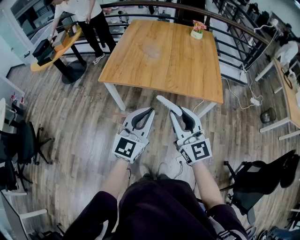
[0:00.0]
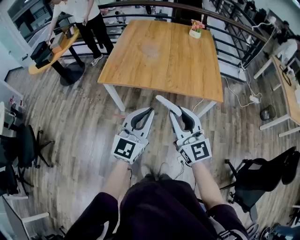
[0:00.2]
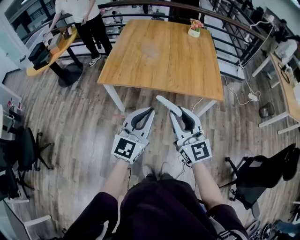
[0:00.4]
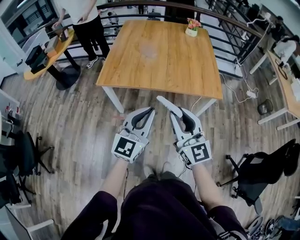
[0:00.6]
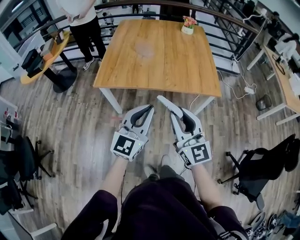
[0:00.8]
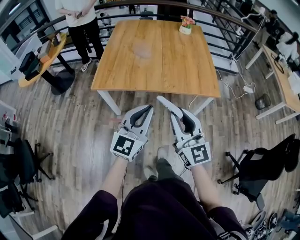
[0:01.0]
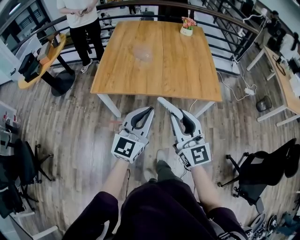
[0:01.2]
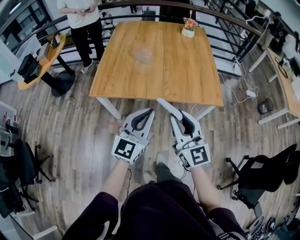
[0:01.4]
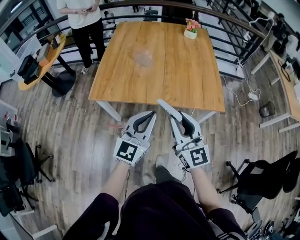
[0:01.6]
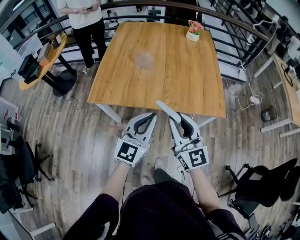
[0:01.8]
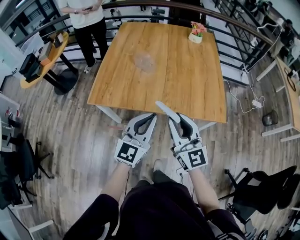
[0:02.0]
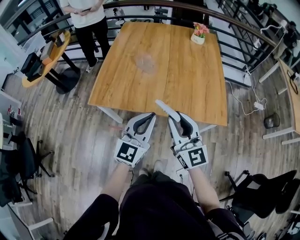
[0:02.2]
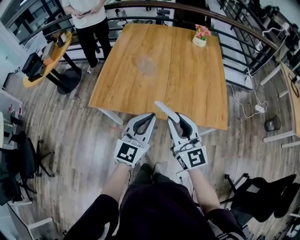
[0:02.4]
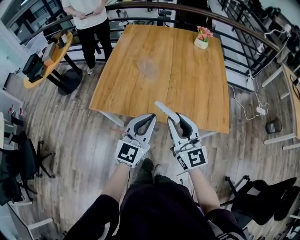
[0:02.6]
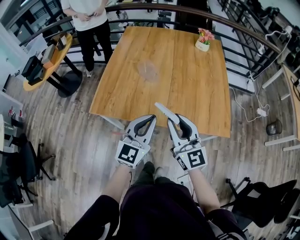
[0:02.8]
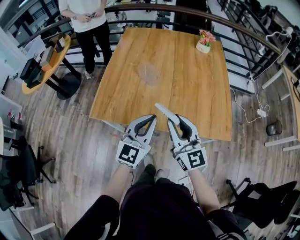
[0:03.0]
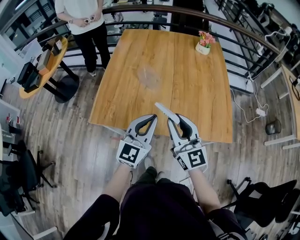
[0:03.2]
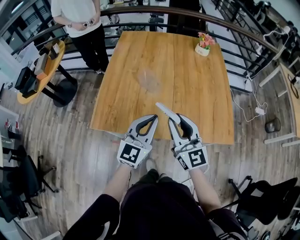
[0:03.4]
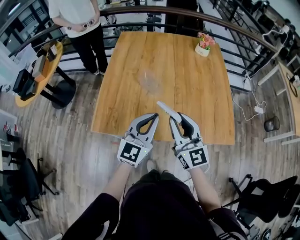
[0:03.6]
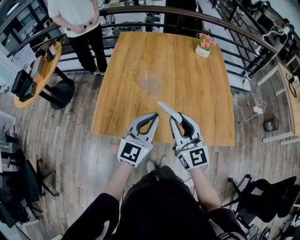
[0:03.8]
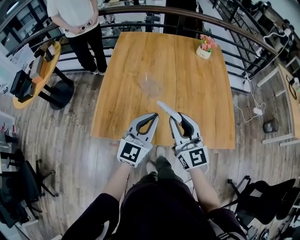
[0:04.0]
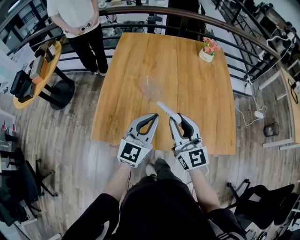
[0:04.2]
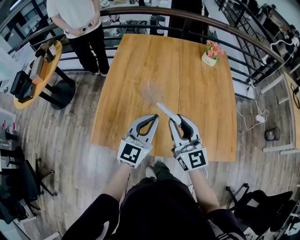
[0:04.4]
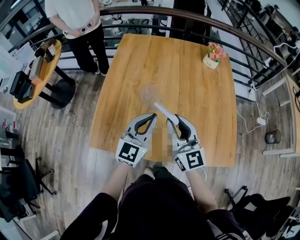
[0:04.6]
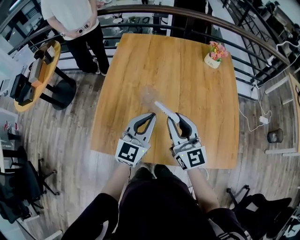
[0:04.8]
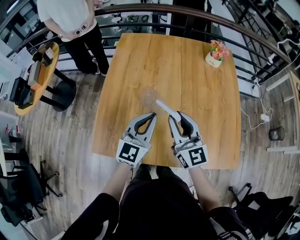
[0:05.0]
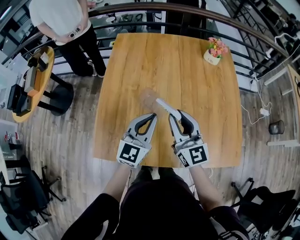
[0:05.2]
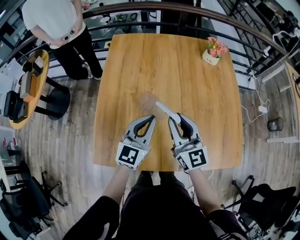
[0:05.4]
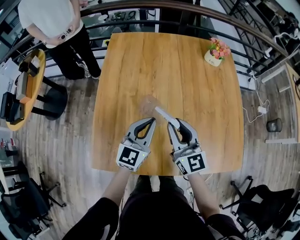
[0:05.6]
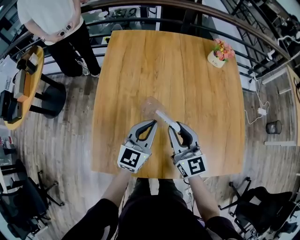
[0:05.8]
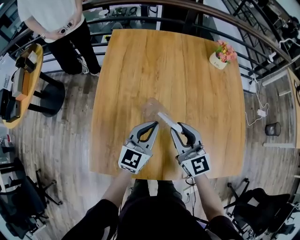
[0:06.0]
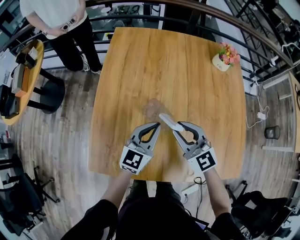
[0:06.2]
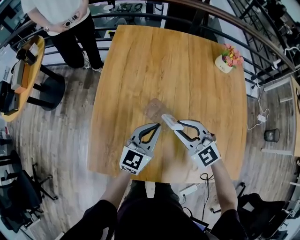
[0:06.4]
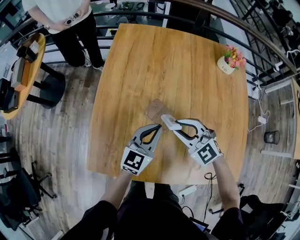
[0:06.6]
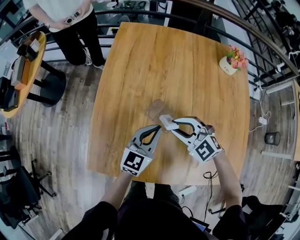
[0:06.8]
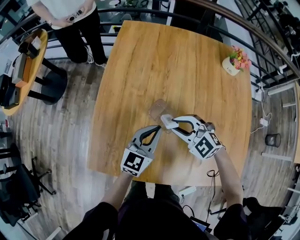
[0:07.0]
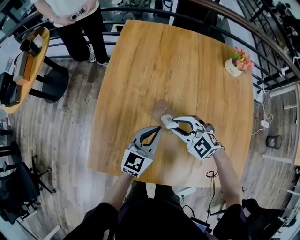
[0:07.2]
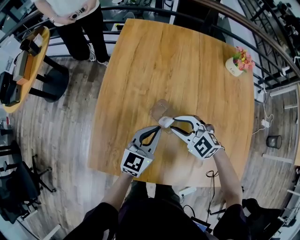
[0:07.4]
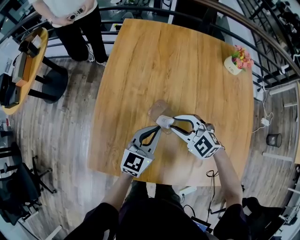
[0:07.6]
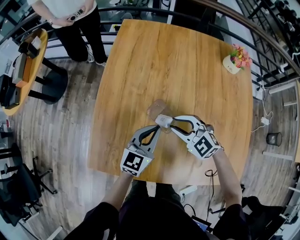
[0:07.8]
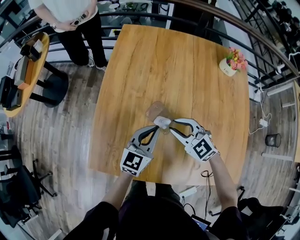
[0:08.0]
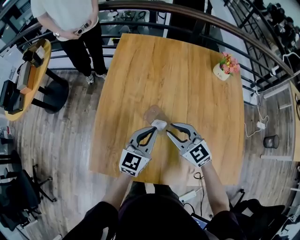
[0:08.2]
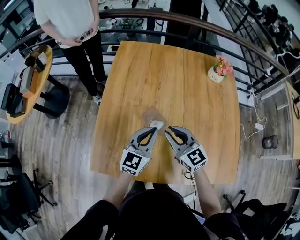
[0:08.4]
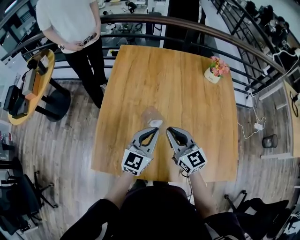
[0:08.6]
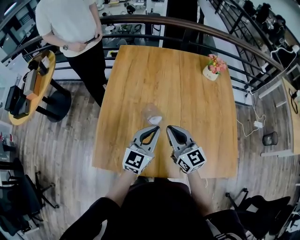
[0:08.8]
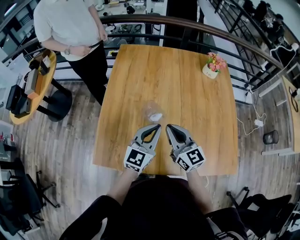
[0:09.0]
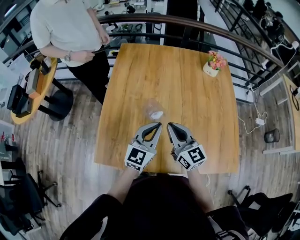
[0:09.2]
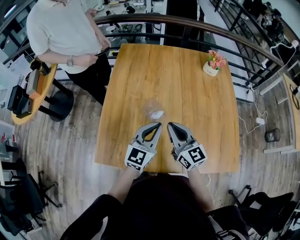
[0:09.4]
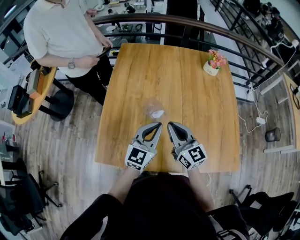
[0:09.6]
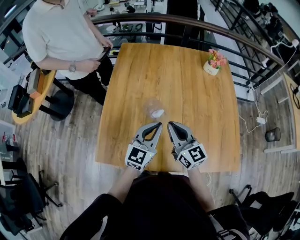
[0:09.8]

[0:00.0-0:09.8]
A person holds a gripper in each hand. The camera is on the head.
0:00.0 to 0:01.4: The two grippers go some 10 cm forward.
0:01.4 to 0:02.8: The grippers both shift forward by about 20 cm.
0:02.8 to 0:04.2: The two grippers go about 20 cm forward and to the left.
0:04.2 to 0:05.6: Both grippers travel together forward, about 20 cm.
0:05.6 to 0:07.0: The left gripper travels downward by some 10 cm. The right gripper moves downward and forward, approximately 15 cm, and points its fingers roughly 30 degrees further downward.
0:07.0 to 0:08.4: The grippers both shift upward by roughly 10 cm. The right gripper rotates approximately 40 degrees.
0:08.4 to 0:09.8: Both grippers move backward, roughly 5 cm.

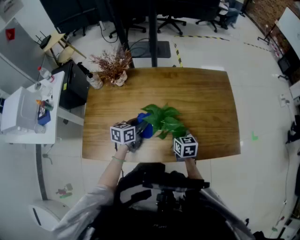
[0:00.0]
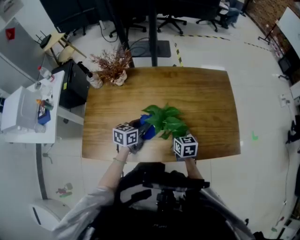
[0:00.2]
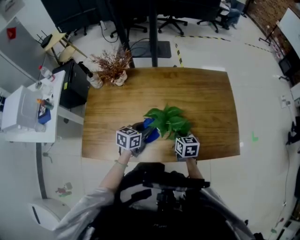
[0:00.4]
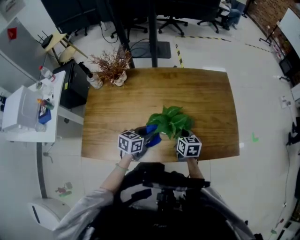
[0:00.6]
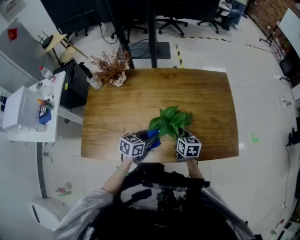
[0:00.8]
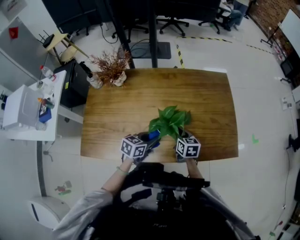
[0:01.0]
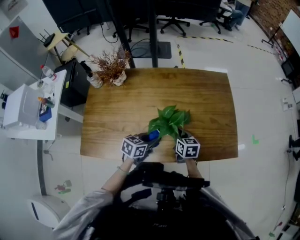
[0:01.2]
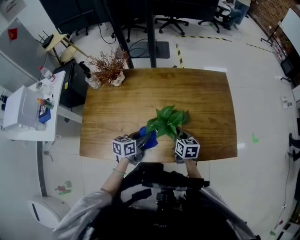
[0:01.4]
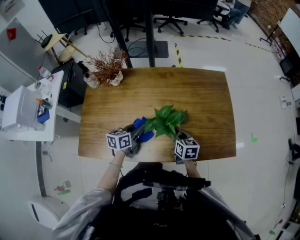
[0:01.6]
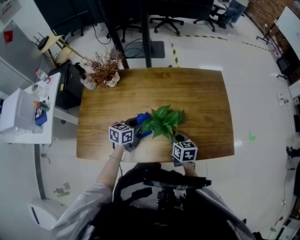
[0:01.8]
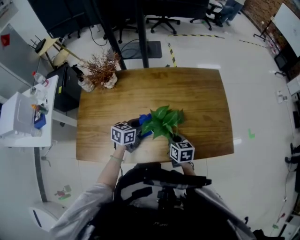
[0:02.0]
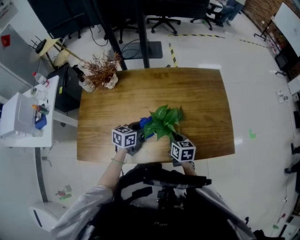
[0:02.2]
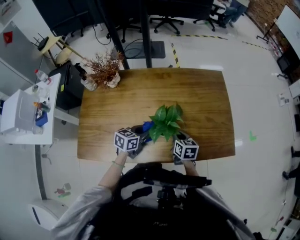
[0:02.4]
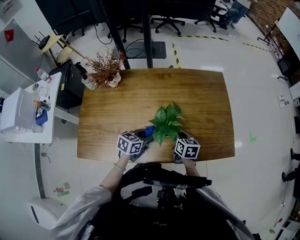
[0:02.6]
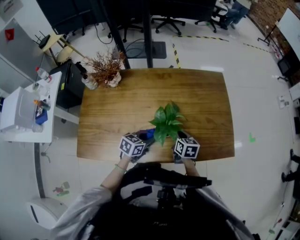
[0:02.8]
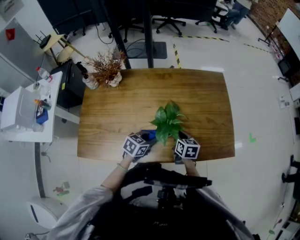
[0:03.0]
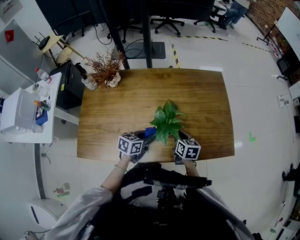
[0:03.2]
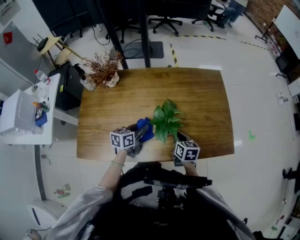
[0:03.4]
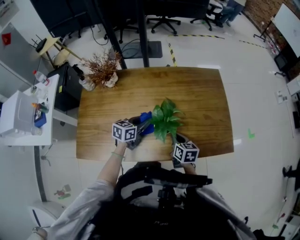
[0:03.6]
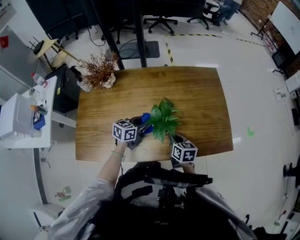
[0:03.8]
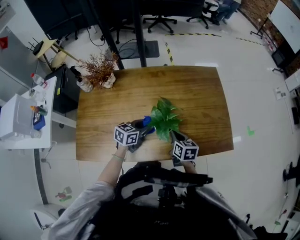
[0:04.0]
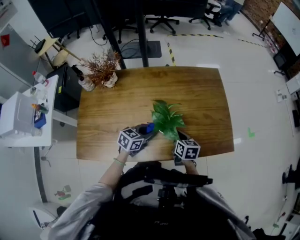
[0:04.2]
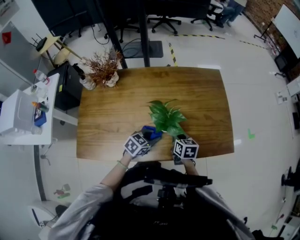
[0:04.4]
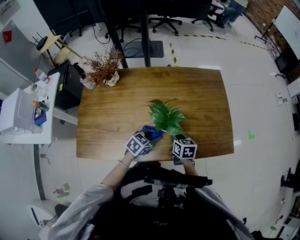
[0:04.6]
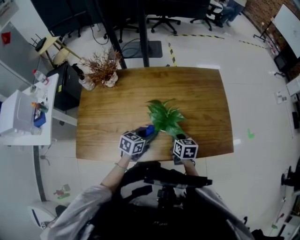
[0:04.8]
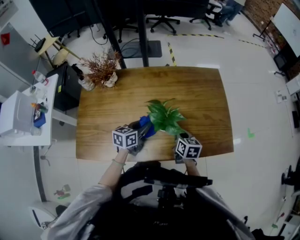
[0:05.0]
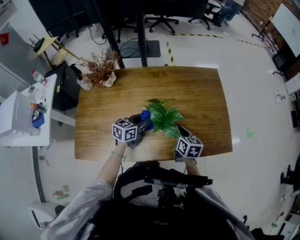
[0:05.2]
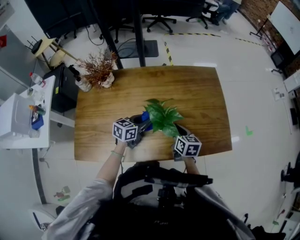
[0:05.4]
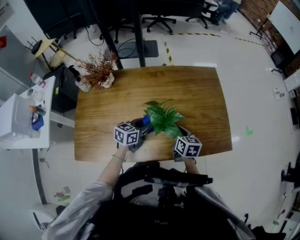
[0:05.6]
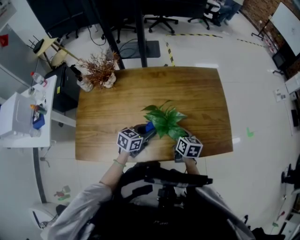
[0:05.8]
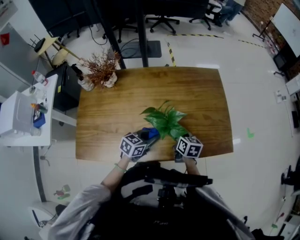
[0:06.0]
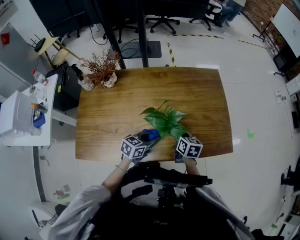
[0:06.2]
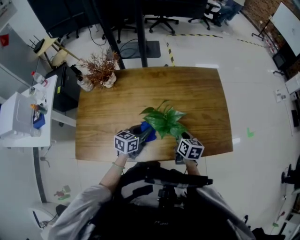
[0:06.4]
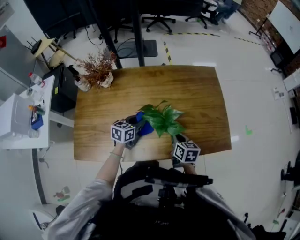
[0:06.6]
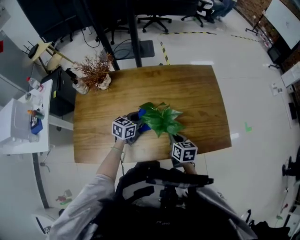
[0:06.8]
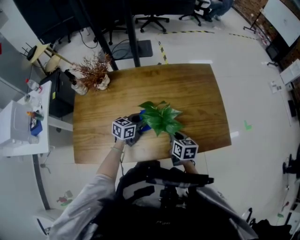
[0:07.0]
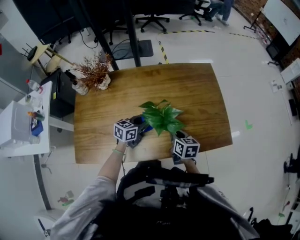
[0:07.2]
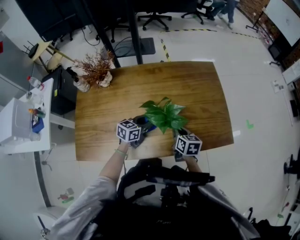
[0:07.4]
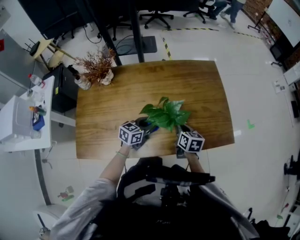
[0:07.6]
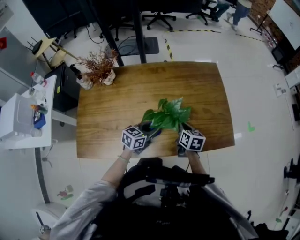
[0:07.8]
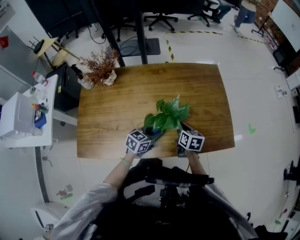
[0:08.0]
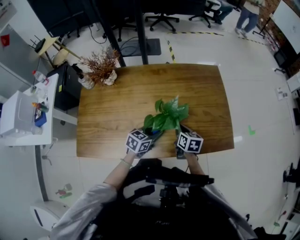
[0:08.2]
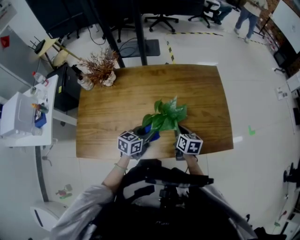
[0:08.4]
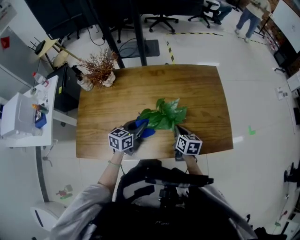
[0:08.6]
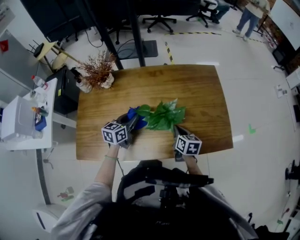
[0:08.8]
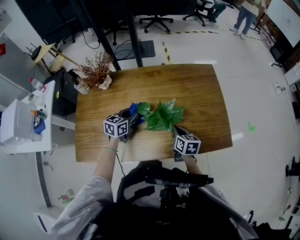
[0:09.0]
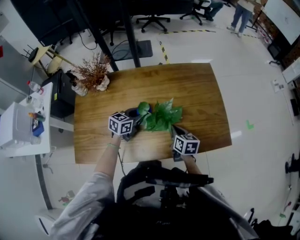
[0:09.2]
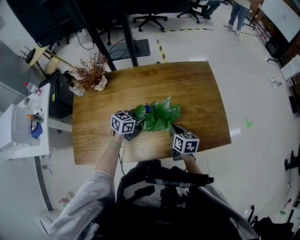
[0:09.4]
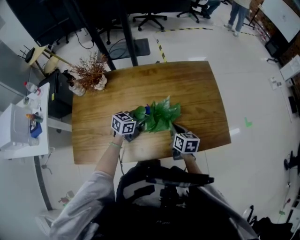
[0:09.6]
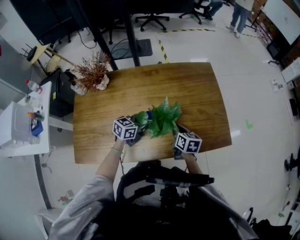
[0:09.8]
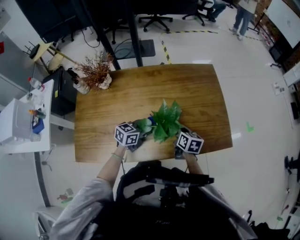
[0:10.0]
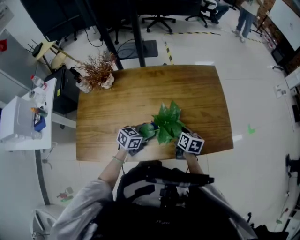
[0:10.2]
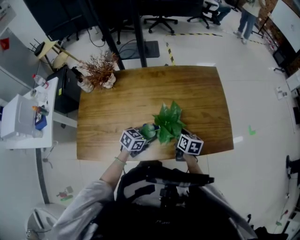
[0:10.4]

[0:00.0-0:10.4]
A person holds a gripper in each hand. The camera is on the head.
0:00.0 to 0:01.4: The left gripper moves to the right and backward, some 10 cm.
0:01.4 to 0:03.0: The left gripper moves to the right, about 5 cm, and changes its angle by approximately 30 degrees.
0:03.0 to 0:04.4: The left gripper goes to the left and returns, approximately 5 cm each way.
0:04.4 to 0:06.0: The left gripper reaches roughly 10 cm forward, then returns.
0:06.0 to 0:07.4: The left gripper is displaced forward by about 5 cm.
0:07.4 to 0:09.0: The left gripper moves to the left, approximately 10 cm.
0:09.0 to 0:10.4: The left gripper moves to the right and backward, roughly 15 cm, and turns by about 20 degrees.

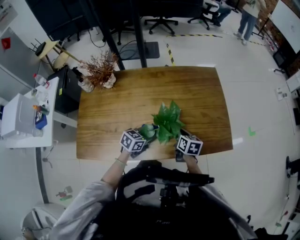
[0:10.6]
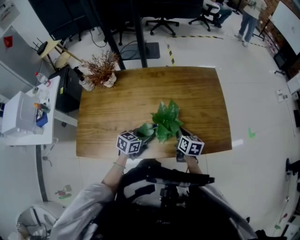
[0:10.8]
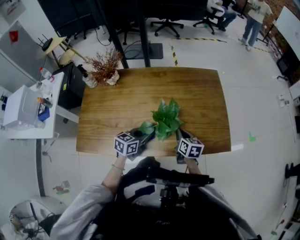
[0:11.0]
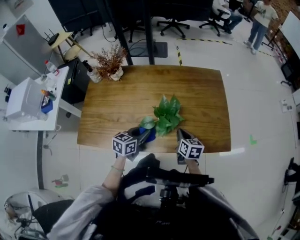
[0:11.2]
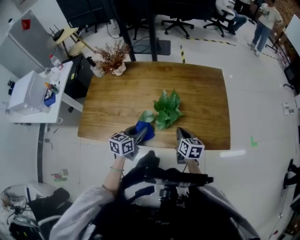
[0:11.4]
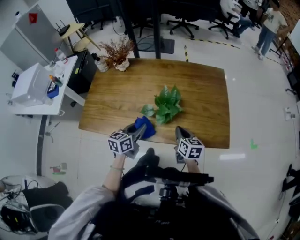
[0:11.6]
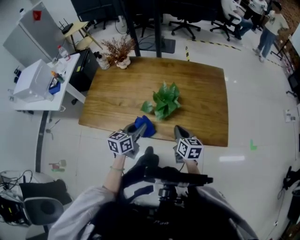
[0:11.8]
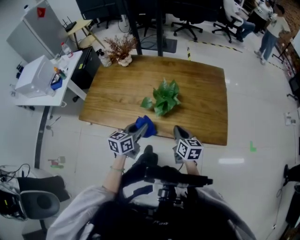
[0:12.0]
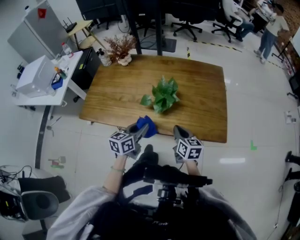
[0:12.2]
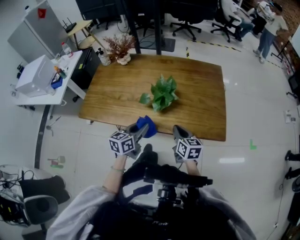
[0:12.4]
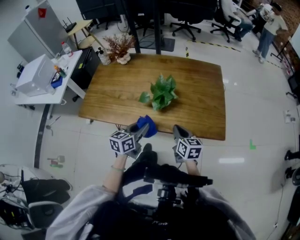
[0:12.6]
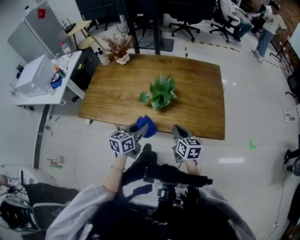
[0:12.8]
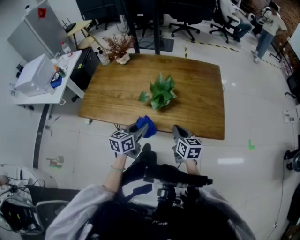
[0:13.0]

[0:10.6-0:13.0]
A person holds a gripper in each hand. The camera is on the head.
0:10.6 to 0:11.8: The right gripper changes place by about 10 cm, and rotates about 20 degrees; the left gripper ends up roughly 15 cm from where it was, and changes its angle by roughly 40 degrees.
0:11.8 to 0:13.0: The right gripper moves approximately 5 cm, while the left gripper shifts by roughly 5 cm.

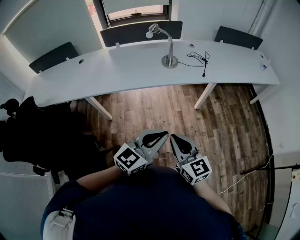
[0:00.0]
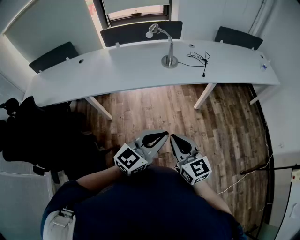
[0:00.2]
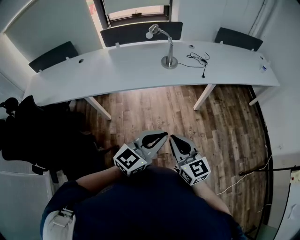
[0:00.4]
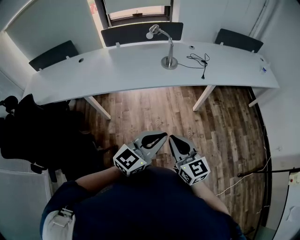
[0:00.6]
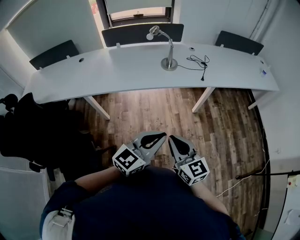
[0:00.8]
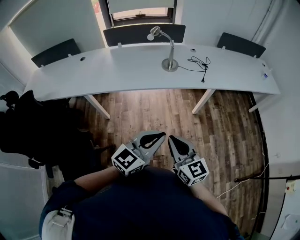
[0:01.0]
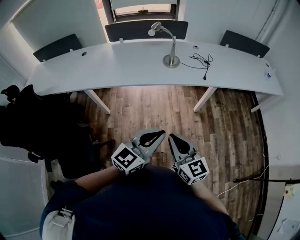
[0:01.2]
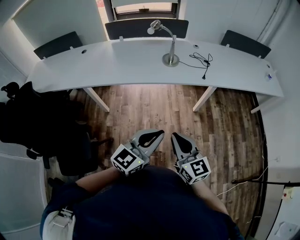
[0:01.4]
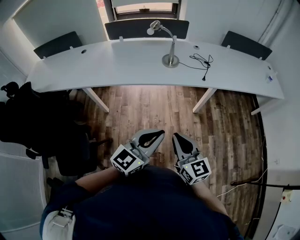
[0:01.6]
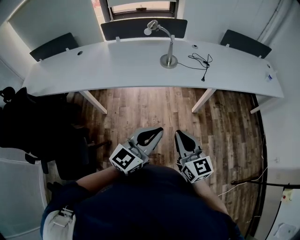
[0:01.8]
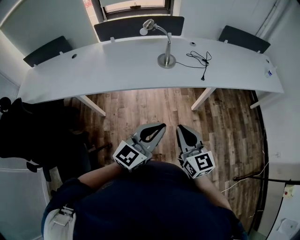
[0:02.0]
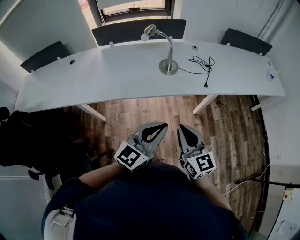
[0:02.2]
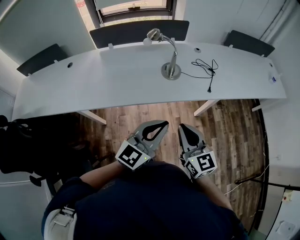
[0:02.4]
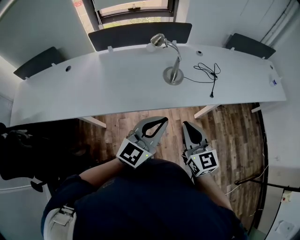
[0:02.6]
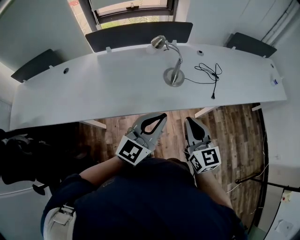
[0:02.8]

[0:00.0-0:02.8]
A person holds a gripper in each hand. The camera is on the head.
0:00.0 to 0:01.4: The grippers both shift to the right by approximately 5 cm.
0:01.4 to 0:02.8: Both grippers move forward, some 35 cm.
